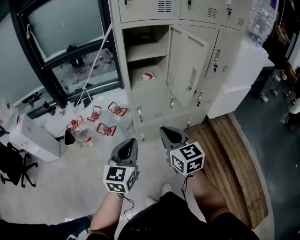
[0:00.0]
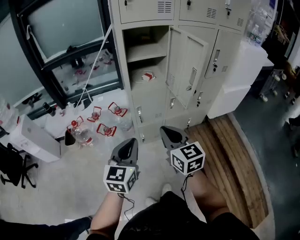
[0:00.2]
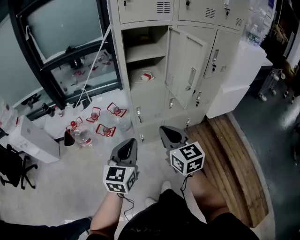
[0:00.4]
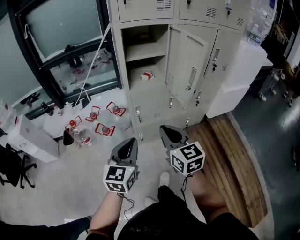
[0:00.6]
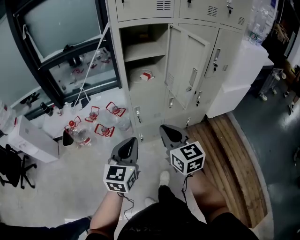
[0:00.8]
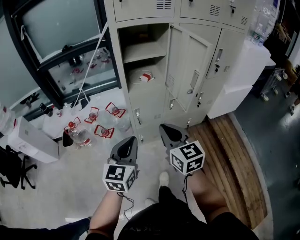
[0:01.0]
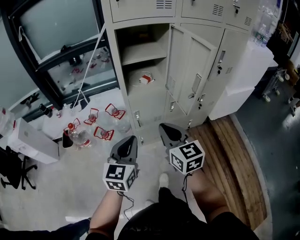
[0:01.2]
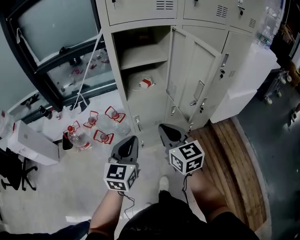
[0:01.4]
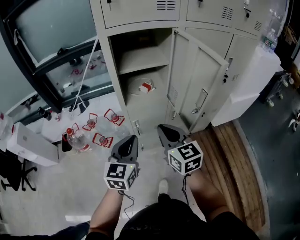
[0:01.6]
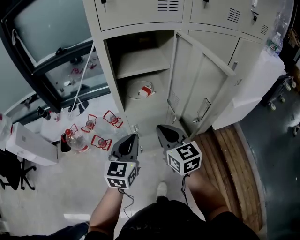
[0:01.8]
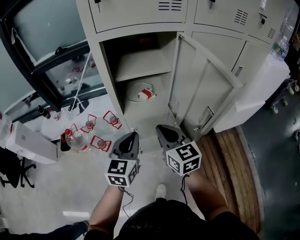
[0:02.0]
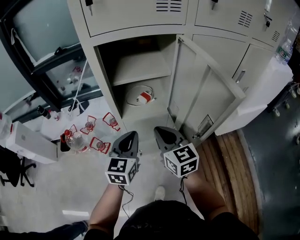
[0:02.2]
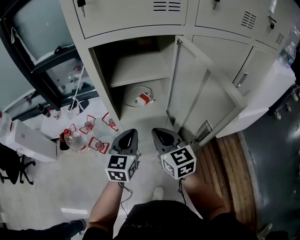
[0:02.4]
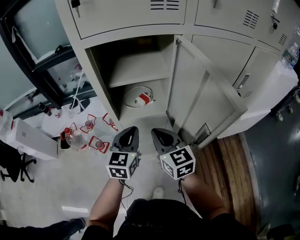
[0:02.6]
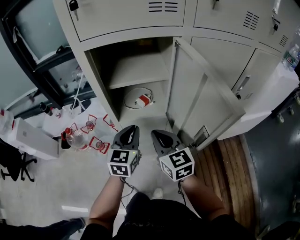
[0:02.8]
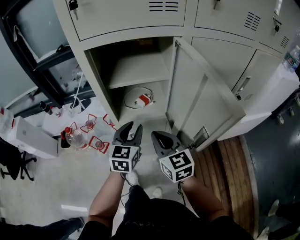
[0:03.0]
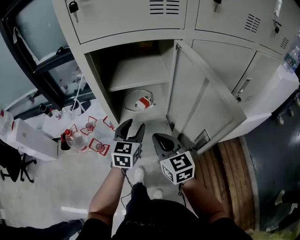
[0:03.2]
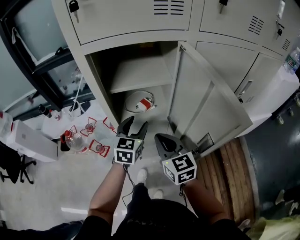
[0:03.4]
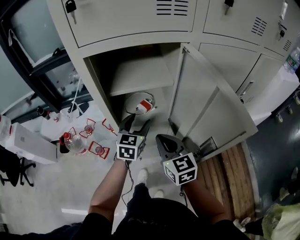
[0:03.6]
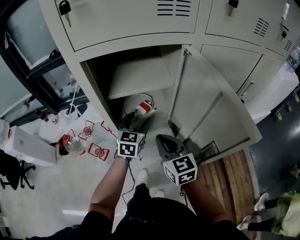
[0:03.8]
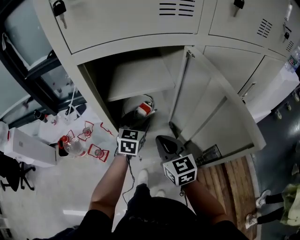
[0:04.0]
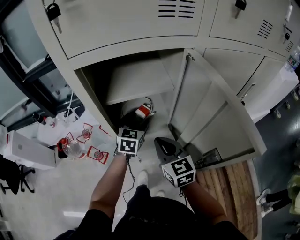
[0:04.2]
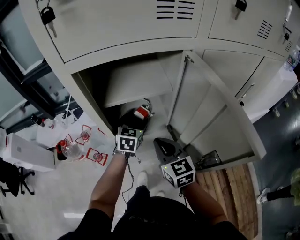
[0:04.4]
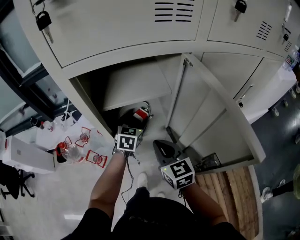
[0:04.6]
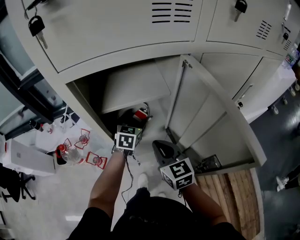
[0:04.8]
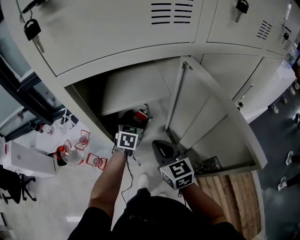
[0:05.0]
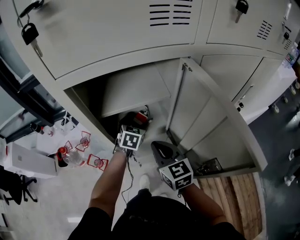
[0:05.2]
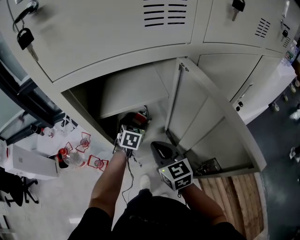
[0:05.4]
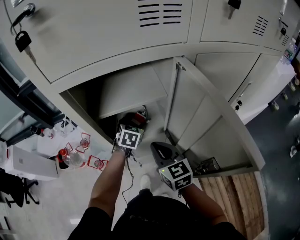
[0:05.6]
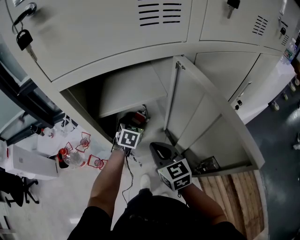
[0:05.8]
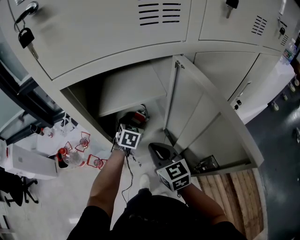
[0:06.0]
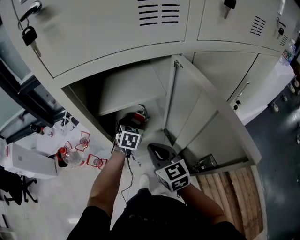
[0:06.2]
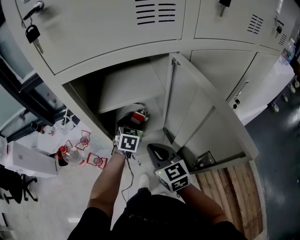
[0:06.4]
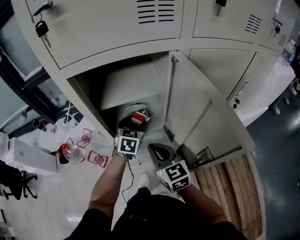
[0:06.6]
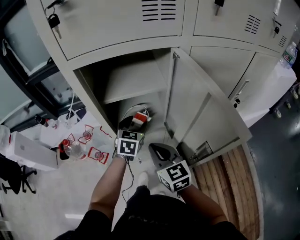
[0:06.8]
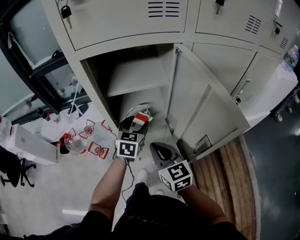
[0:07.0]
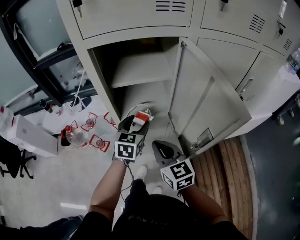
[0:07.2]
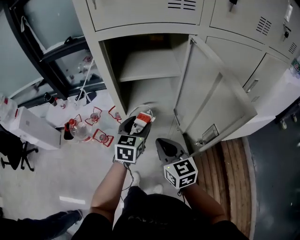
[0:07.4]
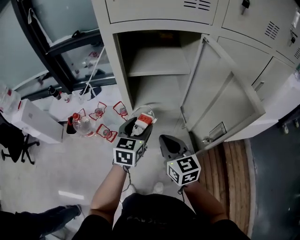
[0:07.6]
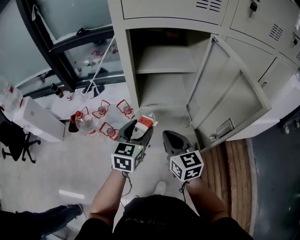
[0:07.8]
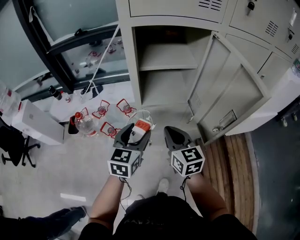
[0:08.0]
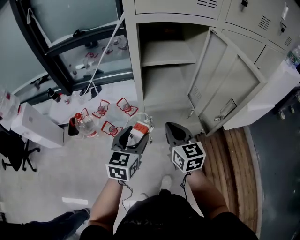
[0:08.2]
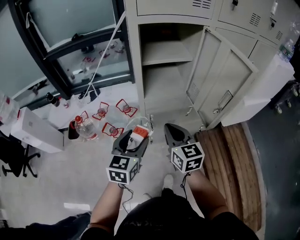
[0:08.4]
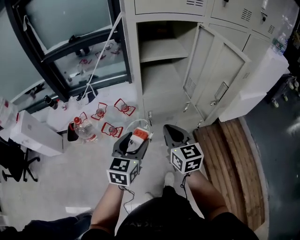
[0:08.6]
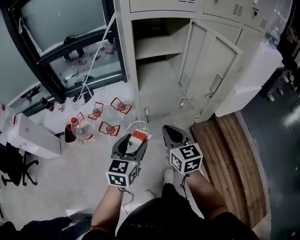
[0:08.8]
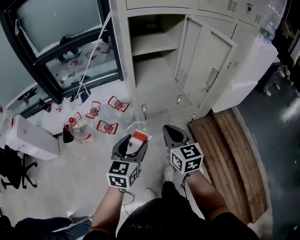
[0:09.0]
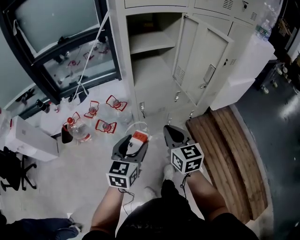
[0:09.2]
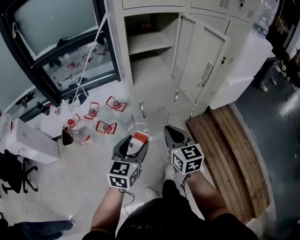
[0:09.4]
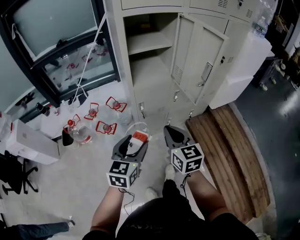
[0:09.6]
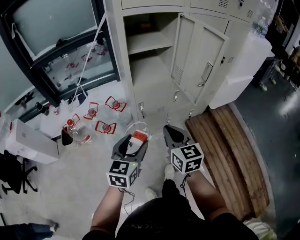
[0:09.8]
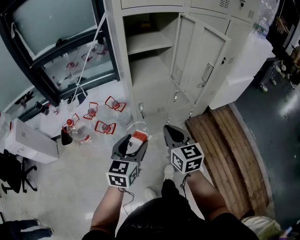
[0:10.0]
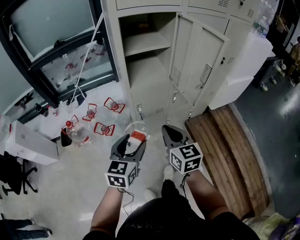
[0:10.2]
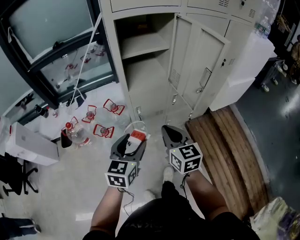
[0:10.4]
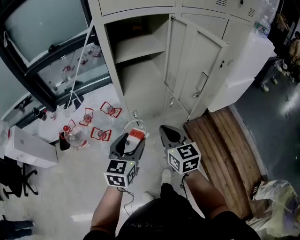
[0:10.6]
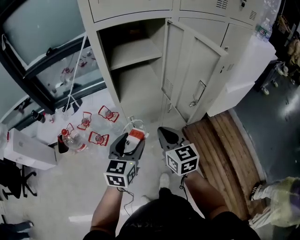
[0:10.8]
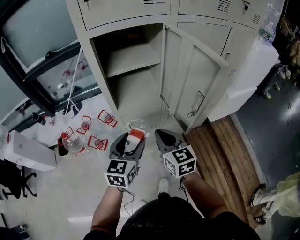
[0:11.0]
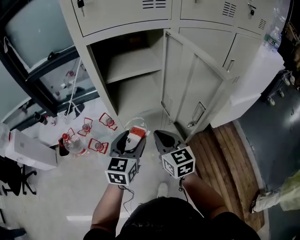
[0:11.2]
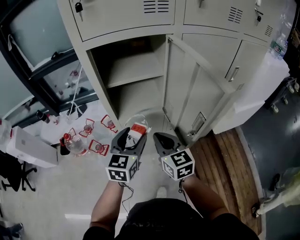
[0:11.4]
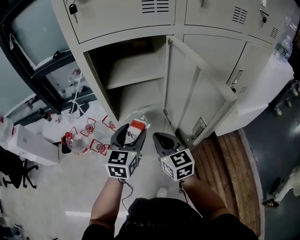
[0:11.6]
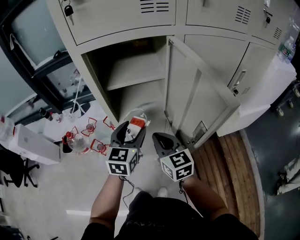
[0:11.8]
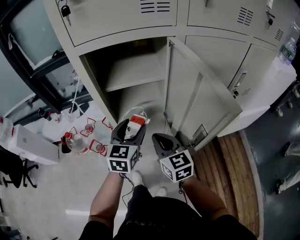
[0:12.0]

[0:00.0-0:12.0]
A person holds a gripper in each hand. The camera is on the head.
0:00.0 to 0:01.6: Both grippers move forward, approximately 15 cm.
0:01.6 to 0:03.0: The left gripper travels forward and to the right by roughly 20 cm, while the right gripper is displaced forward by roughly 10 cm.
0:03.0 to 0:04.4: The right gripper shifts about 5 cm forward. The left gripper travels forward and downward by about 15 cm, and opens.
0:04.4 to 0:06.0: The grippers move only a little.
0:06.0 to 0:07.6: The left gripper goes approximately 20 cm backward, and swivels roughly 20 degrees, while the right gripper moves backward, approximately 10 cm.
0:07.6 to 0:09.0: The left gripper is displaced backward and to the left by about 25 cm, while the right gripper is displaced backward and to the left by about 15 cm.
0:09.0 to 0:10.4: The grippers move only a little.
0:10.4 to 0:12.0: The right gripper shifts some 20 cm forward. Meanwhile the left gripper travels forward and to the right by some 25 cm.

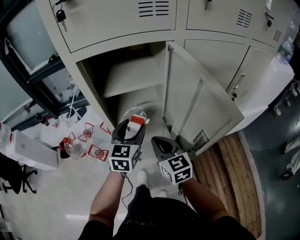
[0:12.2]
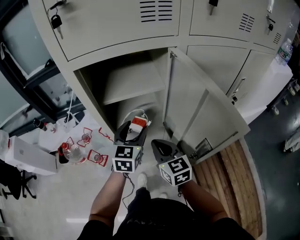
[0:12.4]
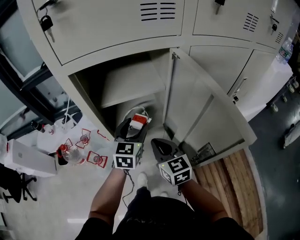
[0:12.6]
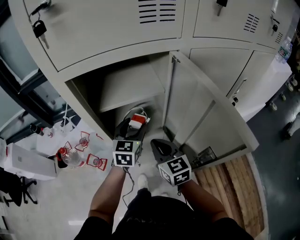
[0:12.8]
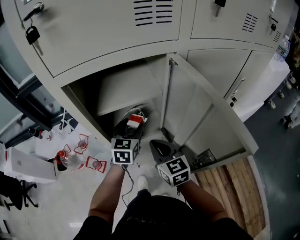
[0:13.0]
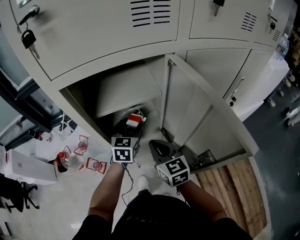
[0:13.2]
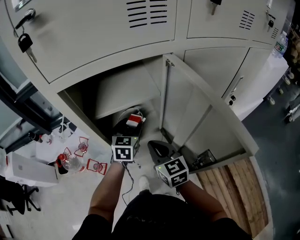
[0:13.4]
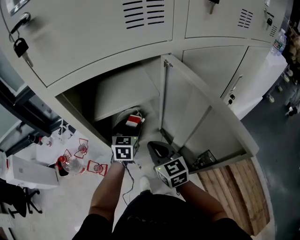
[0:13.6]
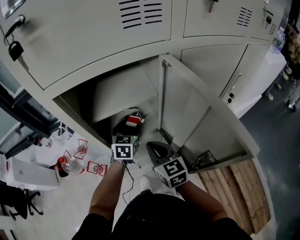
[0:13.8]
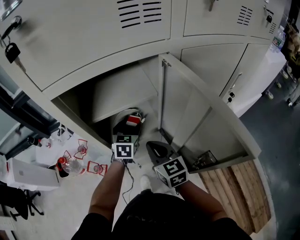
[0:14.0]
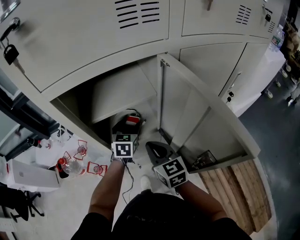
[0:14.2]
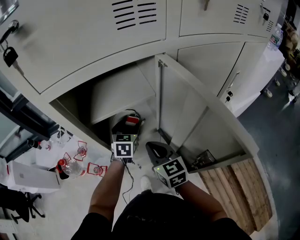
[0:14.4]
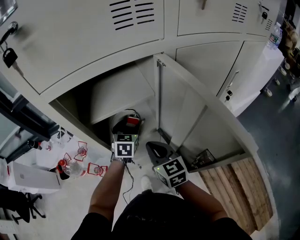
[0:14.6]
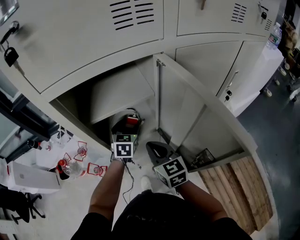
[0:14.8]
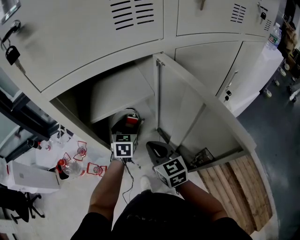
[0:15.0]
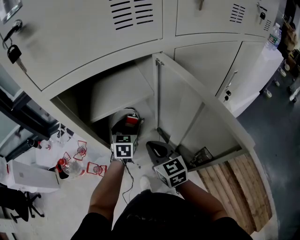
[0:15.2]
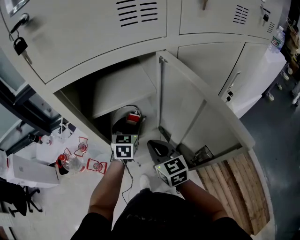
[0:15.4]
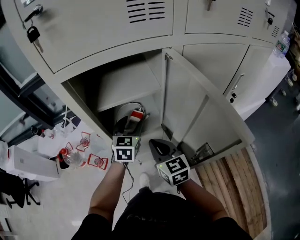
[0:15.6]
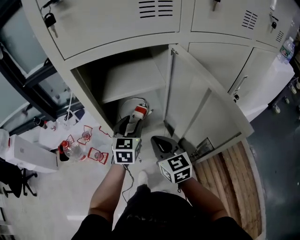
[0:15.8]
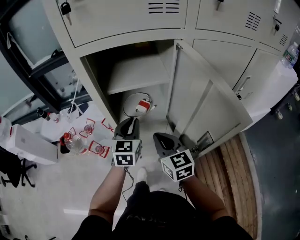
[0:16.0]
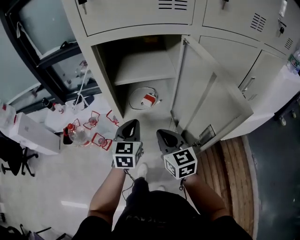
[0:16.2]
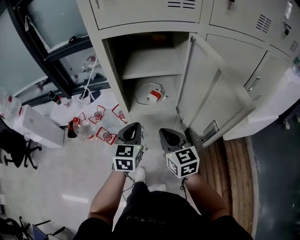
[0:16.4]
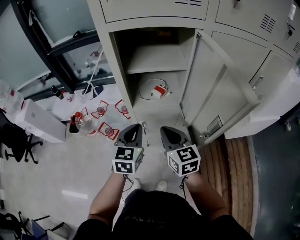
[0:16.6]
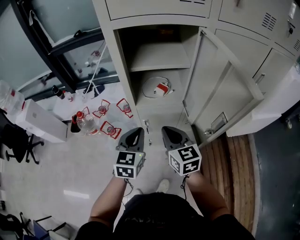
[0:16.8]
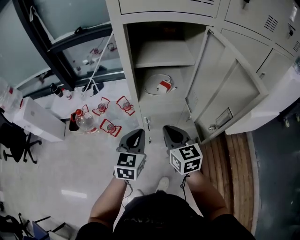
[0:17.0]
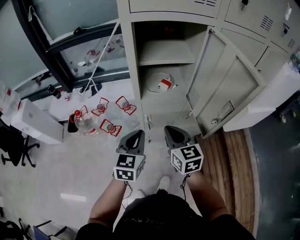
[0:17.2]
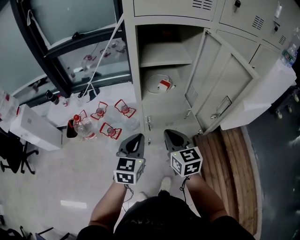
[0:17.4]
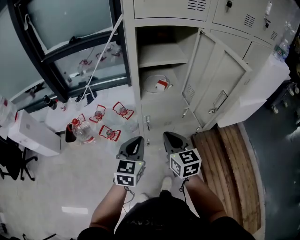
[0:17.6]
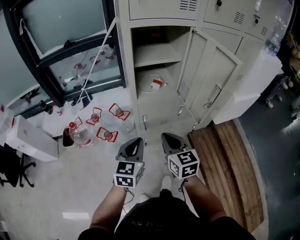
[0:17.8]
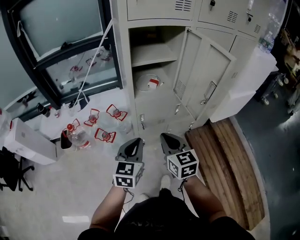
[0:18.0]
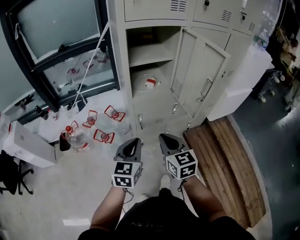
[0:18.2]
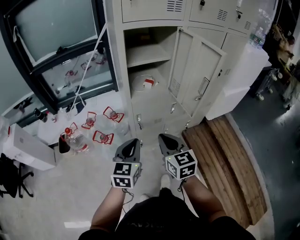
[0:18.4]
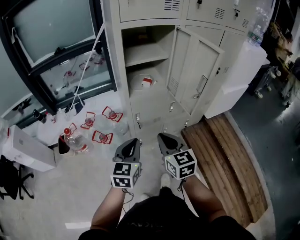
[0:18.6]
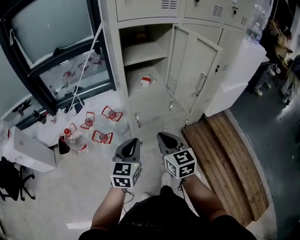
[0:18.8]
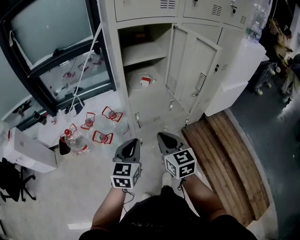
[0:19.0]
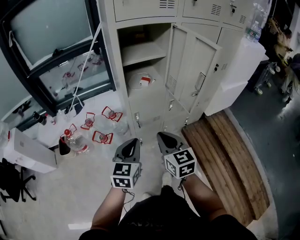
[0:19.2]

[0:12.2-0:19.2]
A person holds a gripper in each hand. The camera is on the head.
0:12.2 to 0:13.6: The left gripper goes approximately 15 cm forward and downward, while the right gripper travels forward by some 5 cm.
0:13.6 to 0:15.0: The grippers move only a little.
0:15.0 to 0:16.4: The right gripper shifts roughly 10 cm backward, while the left gripper is displaced backward and to the left by some 20 cm, and closes up.
0:16.4 to 0:17.8: The grippers both shift backward and to the left by roughly 15 cm.
0:17.8 to 0:19.2: The right gripper travels backward by roughly 5 cm.

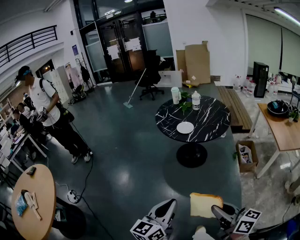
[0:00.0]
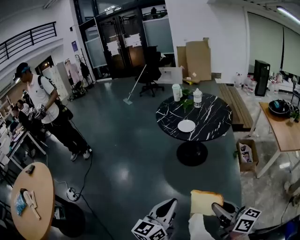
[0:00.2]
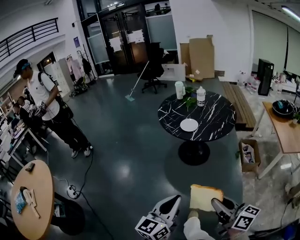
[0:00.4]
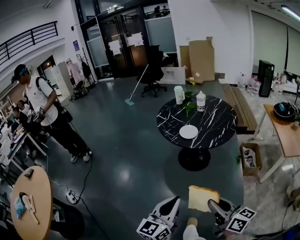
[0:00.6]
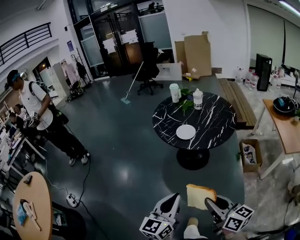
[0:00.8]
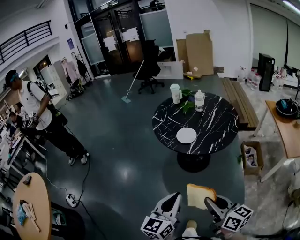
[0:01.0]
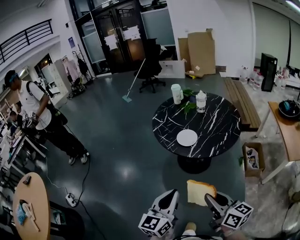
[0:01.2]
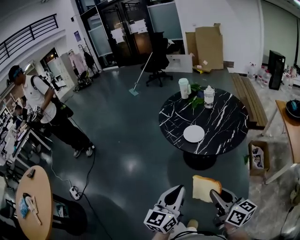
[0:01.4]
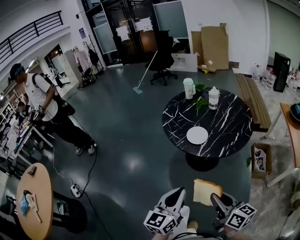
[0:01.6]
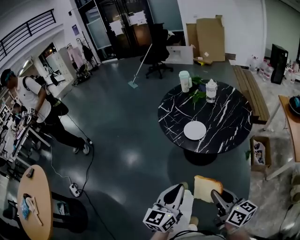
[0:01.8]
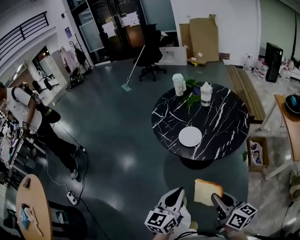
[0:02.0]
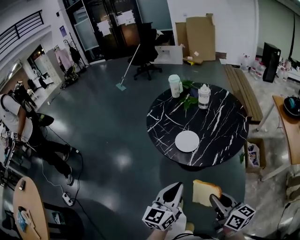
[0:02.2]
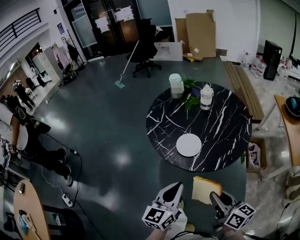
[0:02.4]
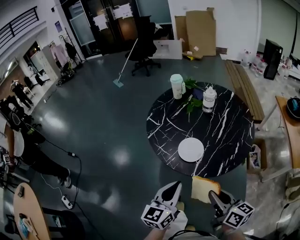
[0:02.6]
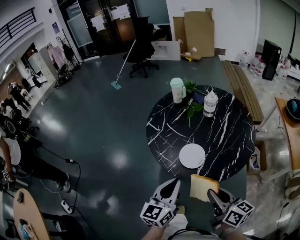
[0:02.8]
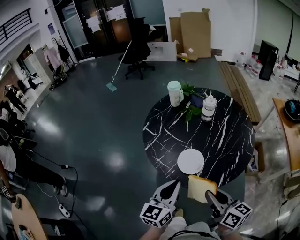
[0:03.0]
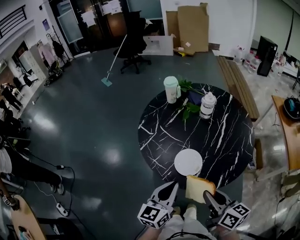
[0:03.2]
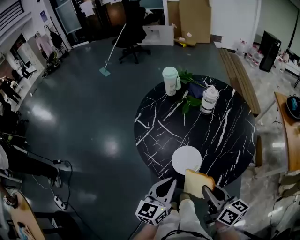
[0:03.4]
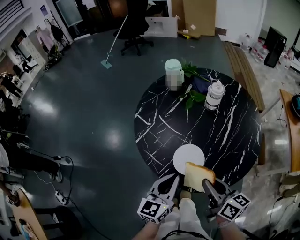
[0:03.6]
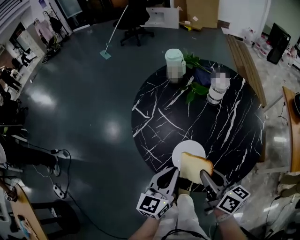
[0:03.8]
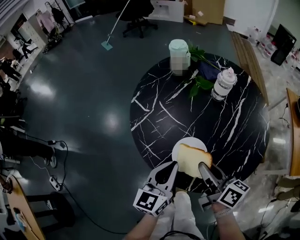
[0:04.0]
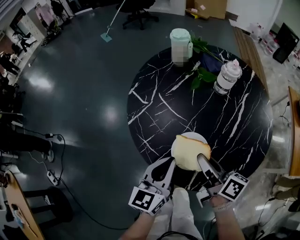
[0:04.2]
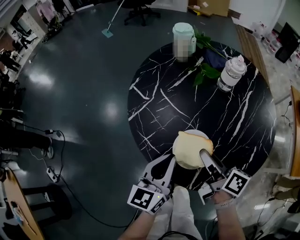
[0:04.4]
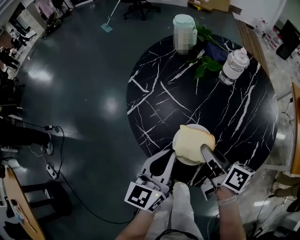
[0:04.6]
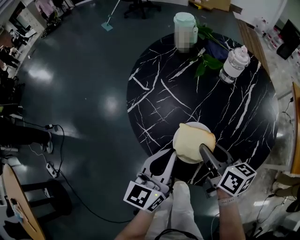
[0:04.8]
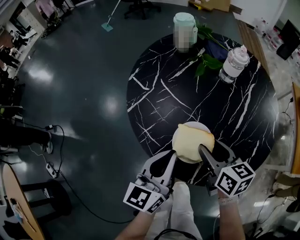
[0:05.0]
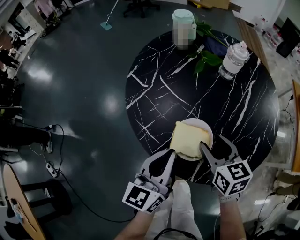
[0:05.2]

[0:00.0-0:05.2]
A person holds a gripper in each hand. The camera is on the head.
0:00.0 to 0:01.8: Both grippers travel together forward, about 30 cm.
0:01.8 to 0:03.4: The two grippers go some 30 cm forward.
0:03.4 to 0:05.2: The right gripper goes about 20 cm forward and downward, turns by about 30 degrees, and opens up; the left gripper moves forward and downward, some 10 cm.
